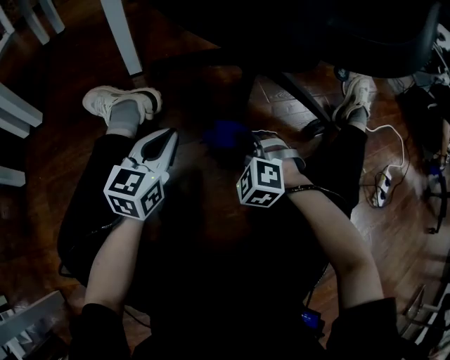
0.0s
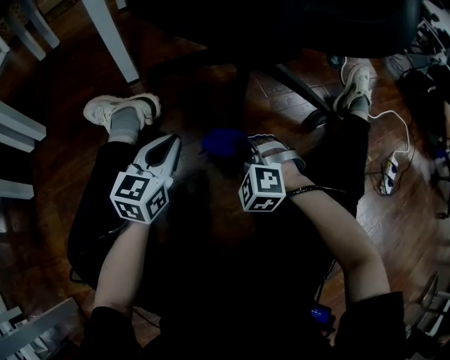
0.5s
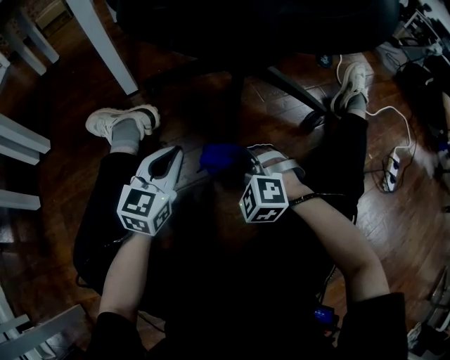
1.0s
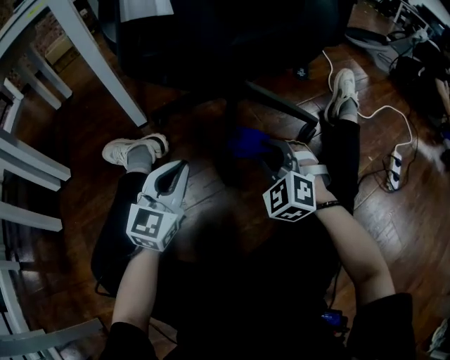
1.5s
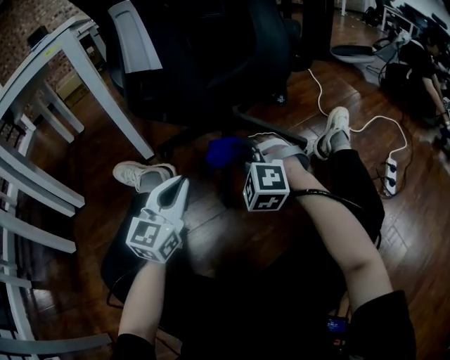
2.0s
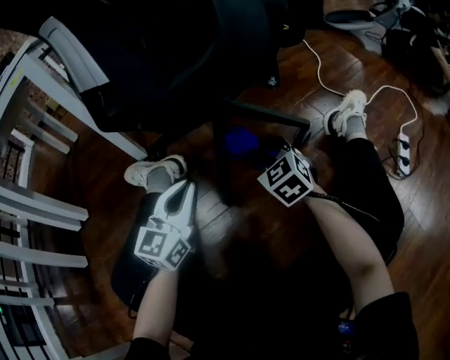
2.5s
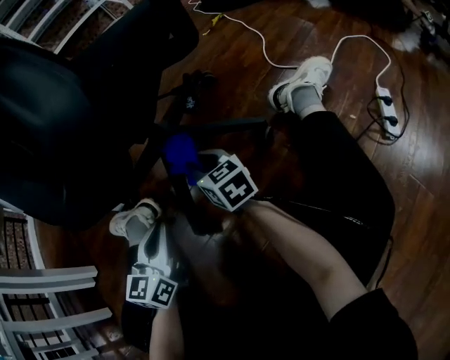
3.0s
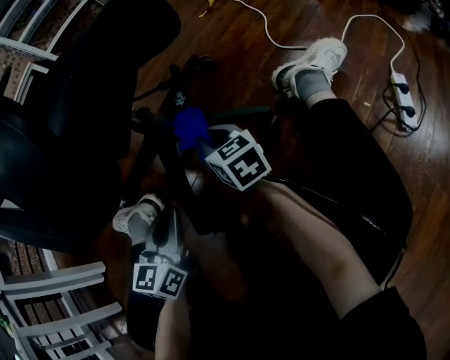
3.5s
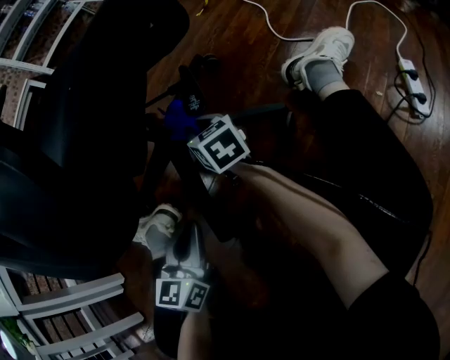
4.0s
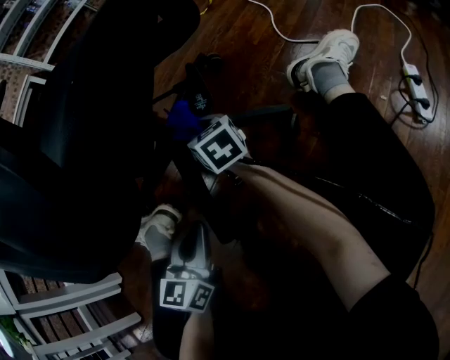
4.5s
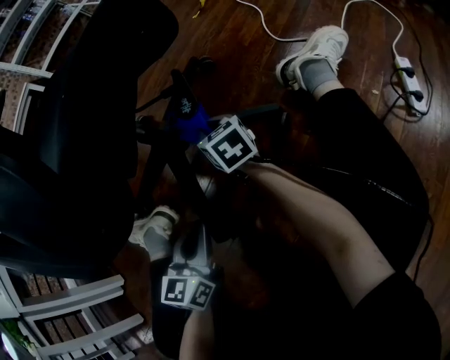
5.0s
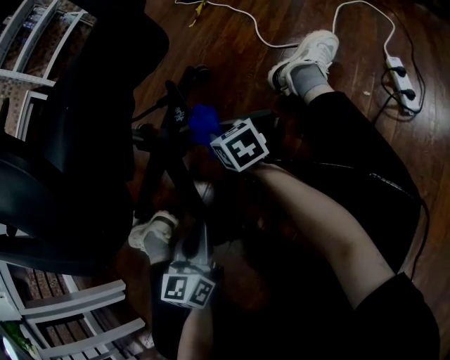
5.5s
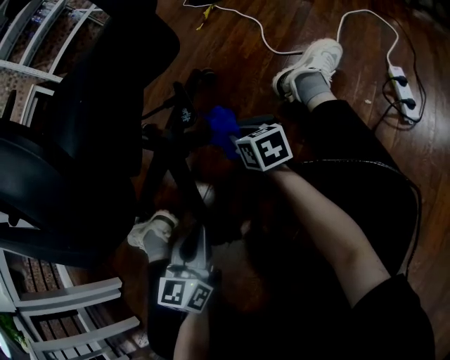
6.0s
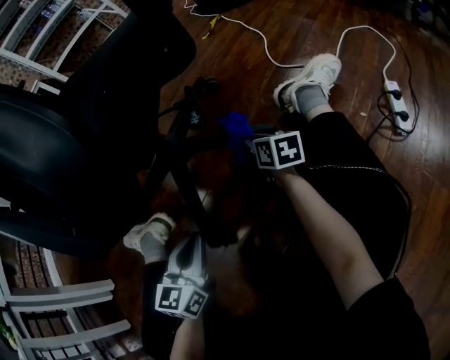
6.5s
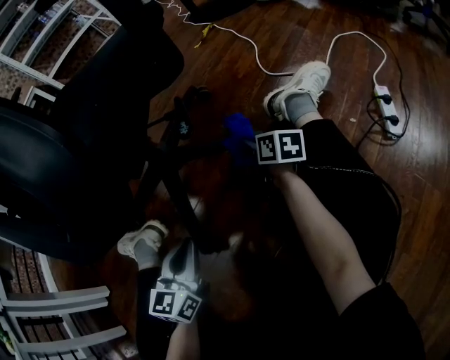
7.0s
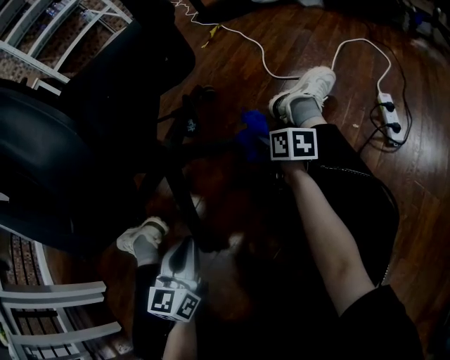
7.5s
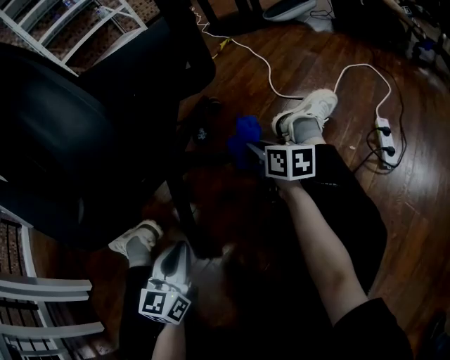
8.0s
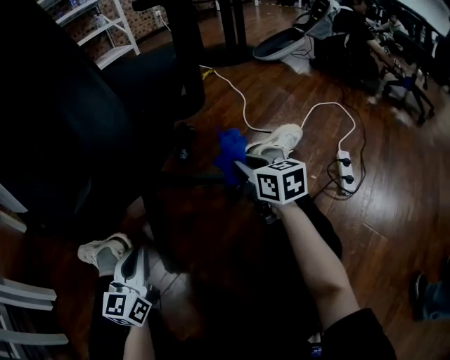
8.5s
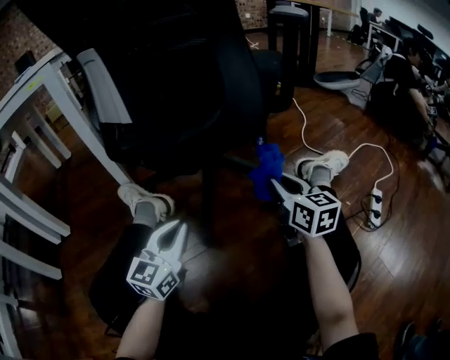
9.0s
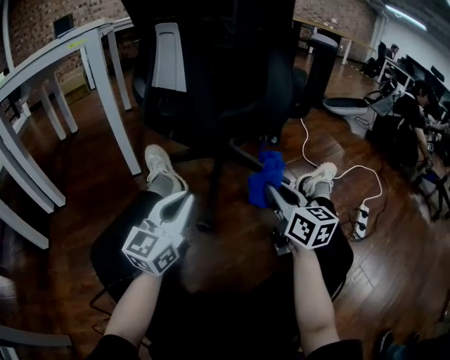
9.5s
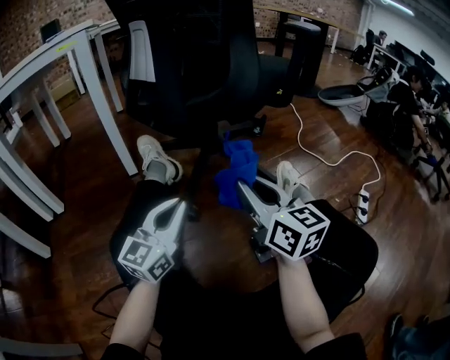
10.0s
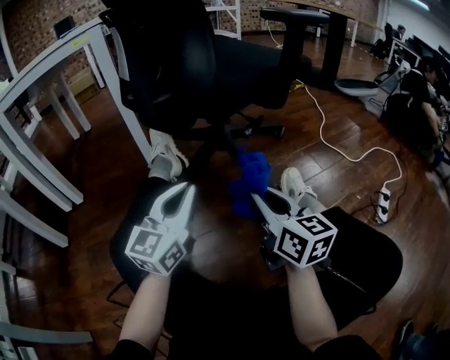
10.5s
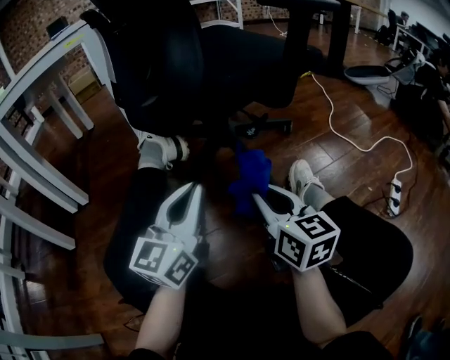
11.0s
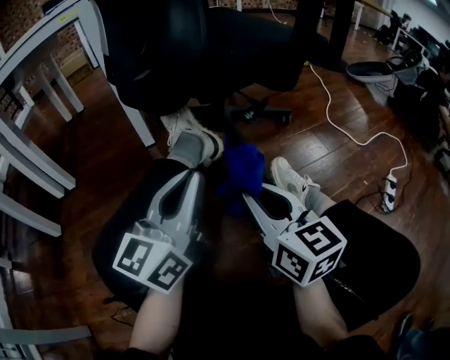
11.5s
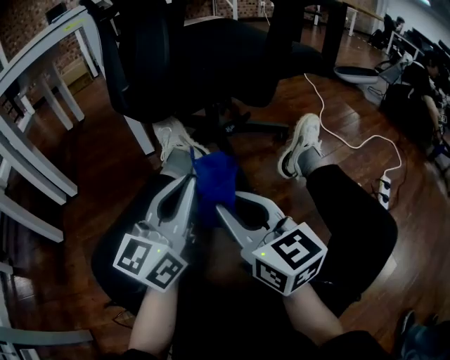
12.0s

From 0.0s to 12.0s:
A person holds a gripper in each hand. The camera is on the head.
From 0.0s to 2.0s: The right gripper moves upward, some 20 cm. Meanwhile the left gripper moves upward and to the right, roughly 15 cm, and changes its angle by approximately 20 degrees.
From 2.0s to 4.0s: The left gripper heads forward, downward and to the right, covering about 15 cm. The right gripper heads forward and downward, covering approximately 25 cm, and twists about 90 degrees clockwise, seen from behind.
From 4.0s to 6.0s: The right gripper is displaced to the right and downward by about 10 cm.
From 6.0s to 8.0s: The right gripper goes some 10 cm to the right and upward.
From 8.0s to 10.0s: The right gripper goes about 40 cm backward, upward and to the left, and turns by about 30 degrees. The left gripper moves upward, backward and to the left, about 15 cm, and rotates approximately 20 degrees.
From 10.0s to 12.0s: The left gripper is displaced upward by about 5 cm. The right gripper heads to the left and backward, covering about 15 cm.

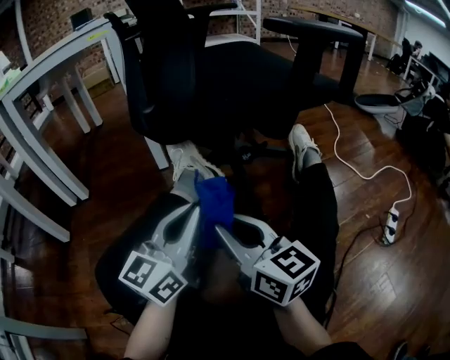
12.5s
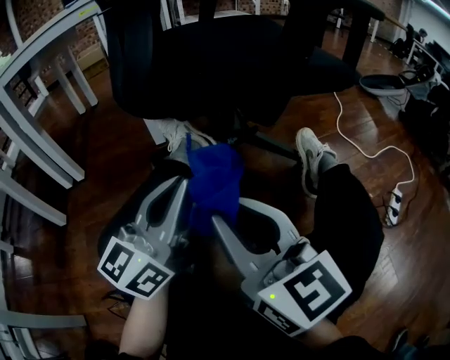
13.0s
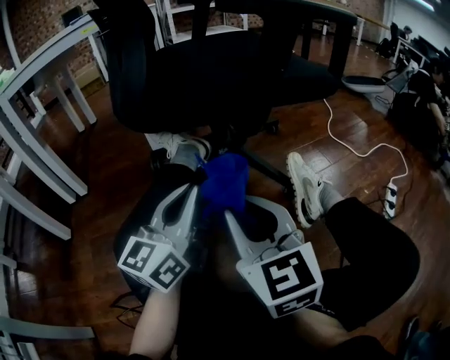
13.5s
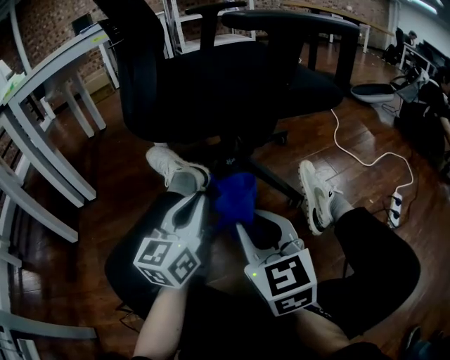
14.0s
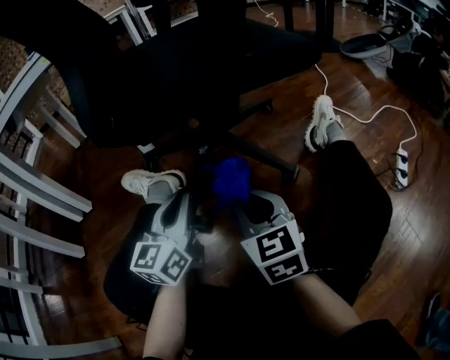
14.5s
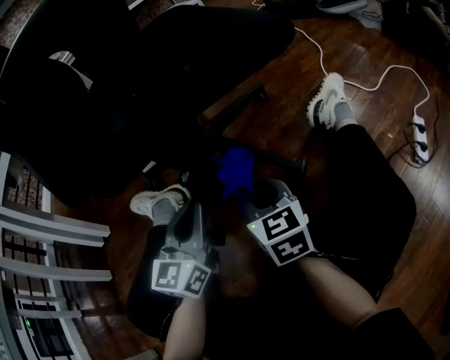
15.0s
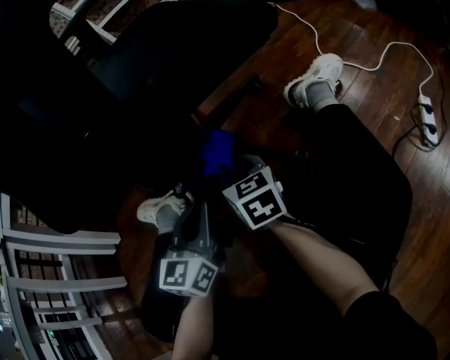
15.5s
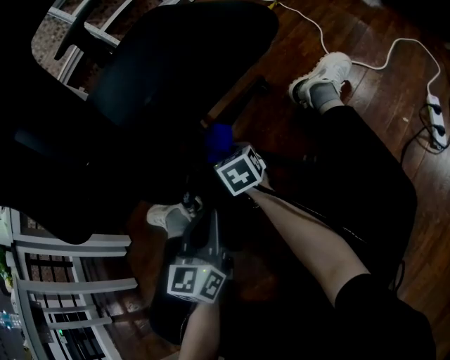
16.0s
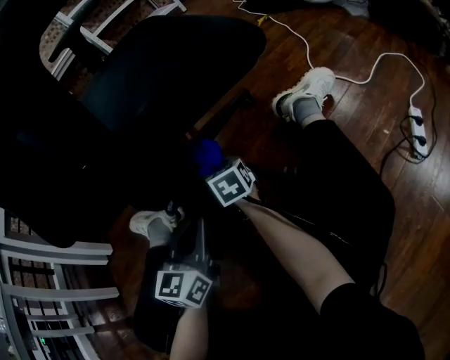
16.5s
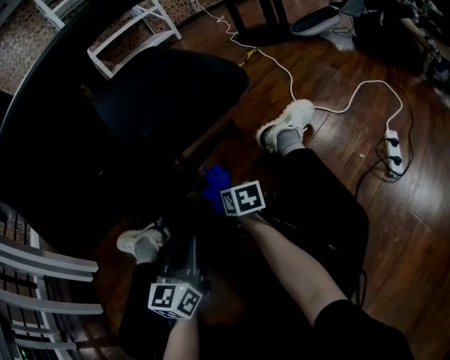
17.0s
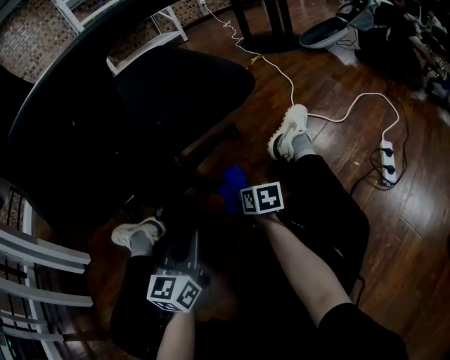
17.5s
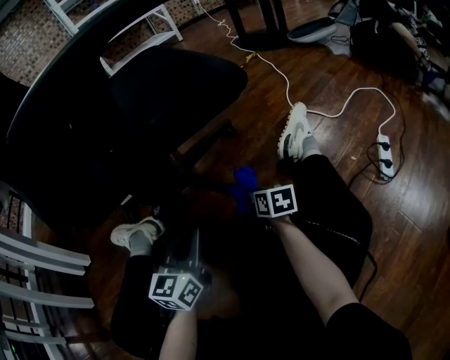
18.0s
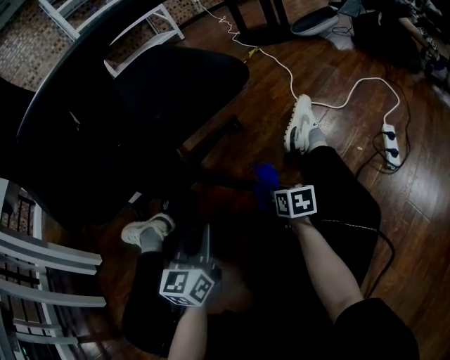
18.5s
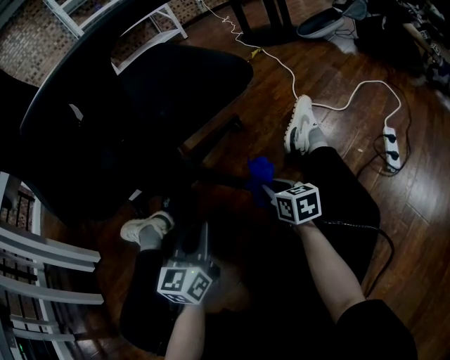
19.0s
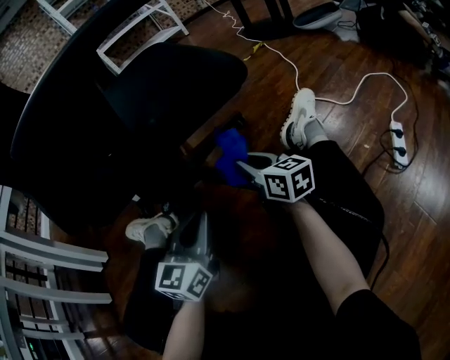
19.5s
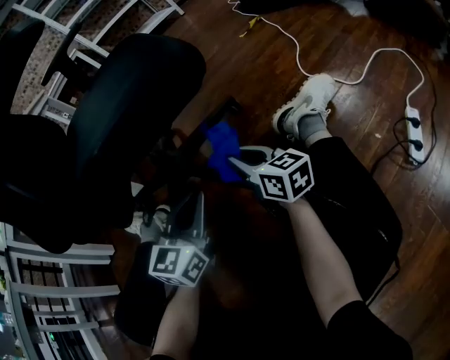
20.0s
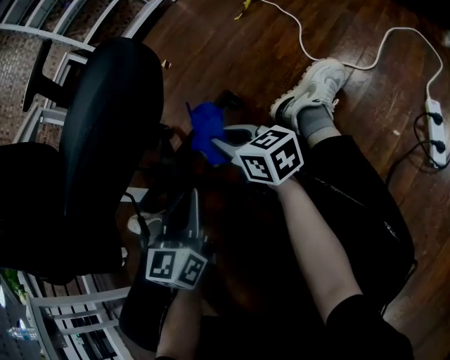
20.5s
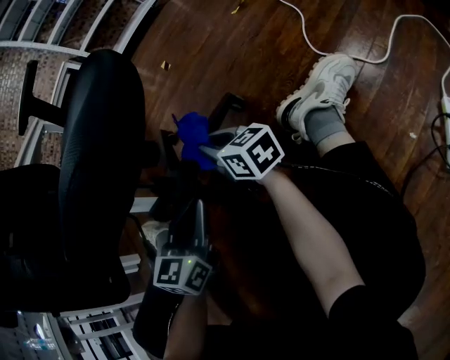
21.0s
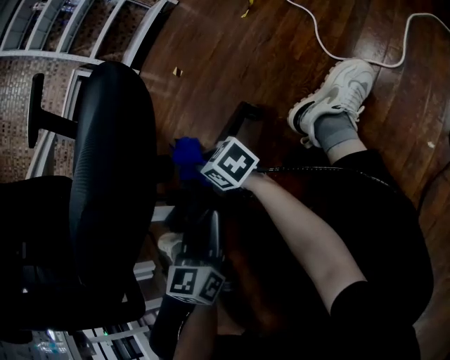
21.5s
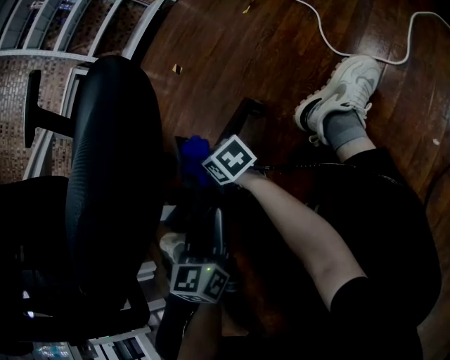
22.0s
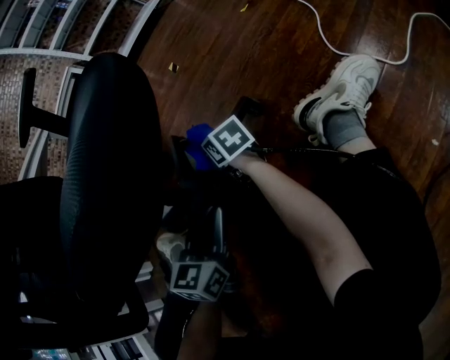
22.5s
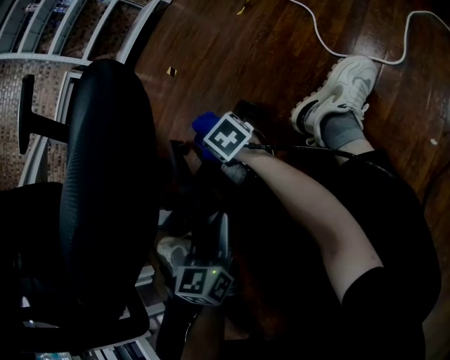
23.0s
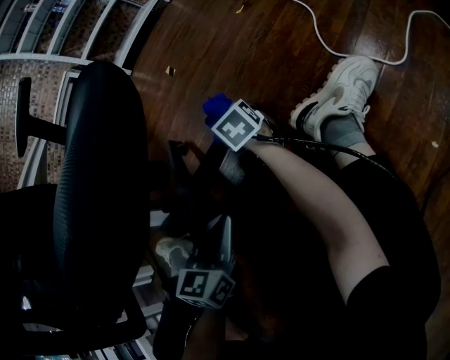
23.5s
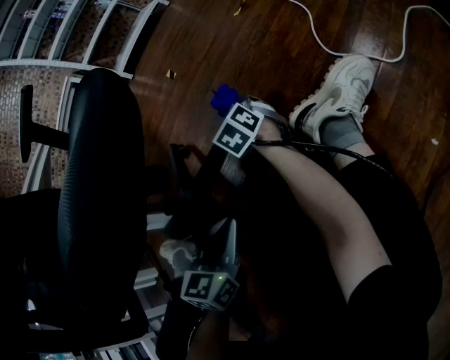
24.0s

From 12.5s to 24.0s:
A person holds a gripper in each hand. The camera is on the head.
From 12.5s to 14.5s: The left gripper travels downward by some 5 cm. The right gripper heads downward and to the right, covering approximately 10 cm, and changes its angle by some 30 degrees.
From 14.5s to 16.5s: The right gripper is displaced forward and downward by roughly 30 cm, and turns by some 20 degrees. Meanwhile the left gripper moves to the right, forward and downward, roughly 10 cm.
From 16.5s to 18.5s: The right gripper moves to the right and backward, approximately 20 cm, and swivels some 20 degrees.
From 18.5s to 20.0s: The right gripper goes some 15 cm upward and forward, and tilts its fingers approximately 30 degrees upward; the left gripper goes about 10 cm forward and to the right.
From 20.0s to 22.0s: The left gripper shifts about 15 cm forward and downward, while the right gripper heads forward and to the left, covering some 25 cm.
From 22.0s to 24.0s: The right gripper heads to the right and forward, covering some 20 cm, and turns by about 50 degrees.

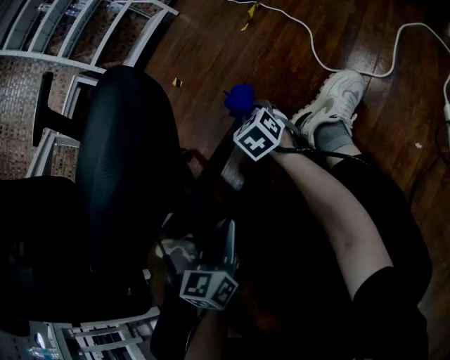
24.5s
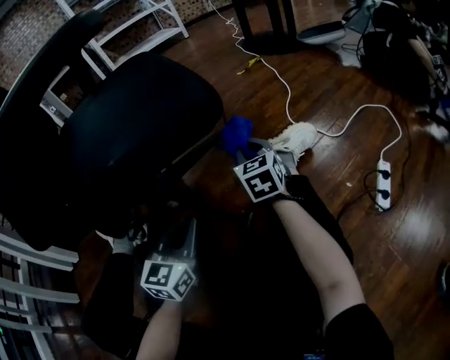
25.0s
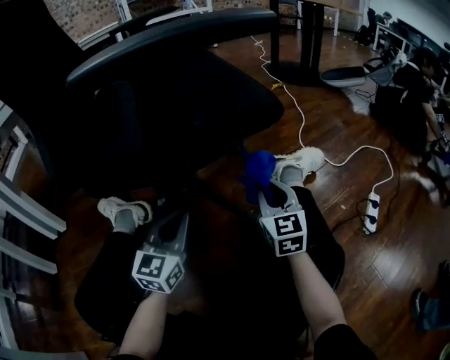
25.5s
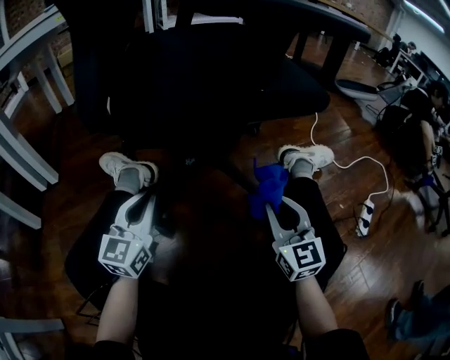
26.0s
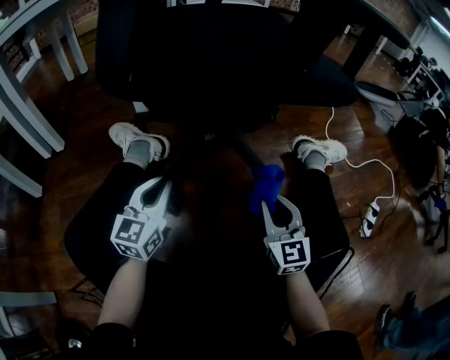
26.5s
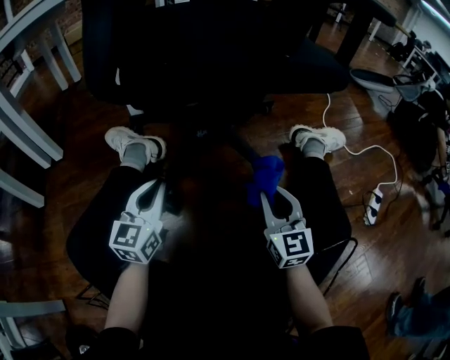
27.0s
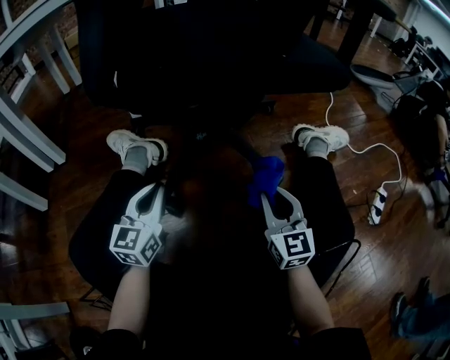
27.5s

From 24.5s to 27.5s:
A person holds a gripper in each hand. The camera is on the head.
From 24.5s to 26.0s: The left gripper is displaced to the left and backward by some 30 cm, and rotates some 30 degrees. The right gripper goes approximately 40 cm backward, and rotates roughly 30 degrees.
From 26.0s to 27.5s: Both grippers travel together downward, about 5 cm.
